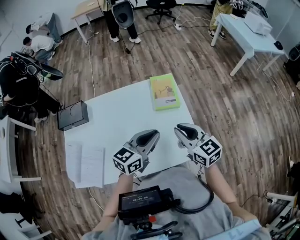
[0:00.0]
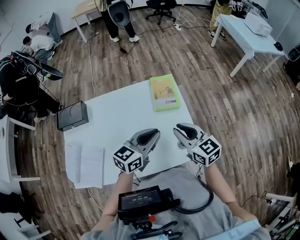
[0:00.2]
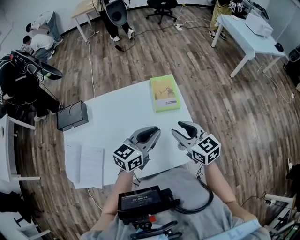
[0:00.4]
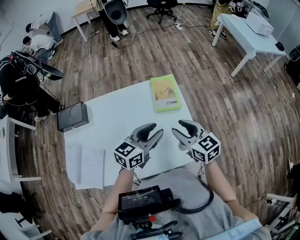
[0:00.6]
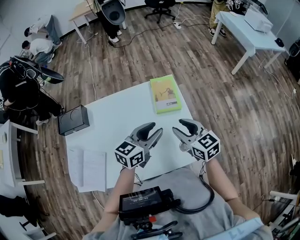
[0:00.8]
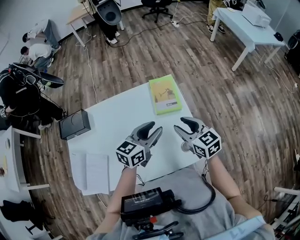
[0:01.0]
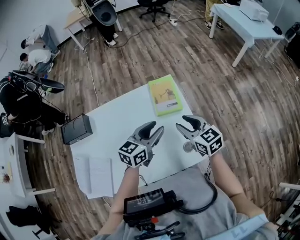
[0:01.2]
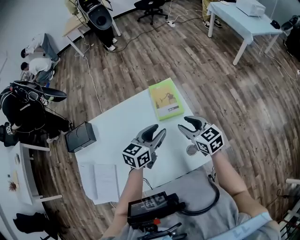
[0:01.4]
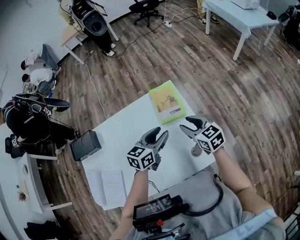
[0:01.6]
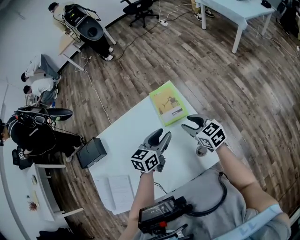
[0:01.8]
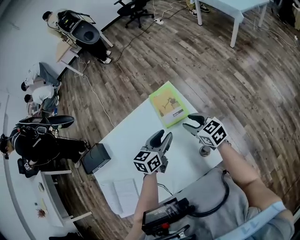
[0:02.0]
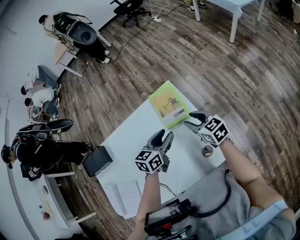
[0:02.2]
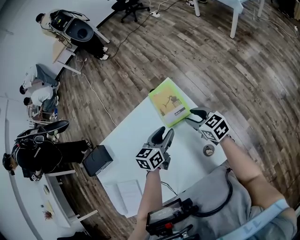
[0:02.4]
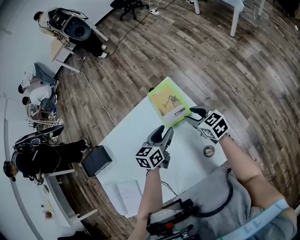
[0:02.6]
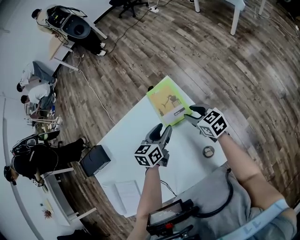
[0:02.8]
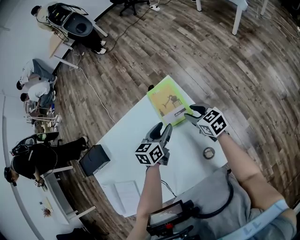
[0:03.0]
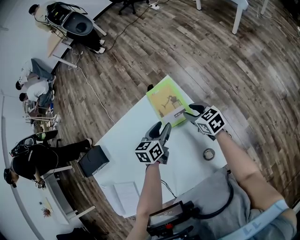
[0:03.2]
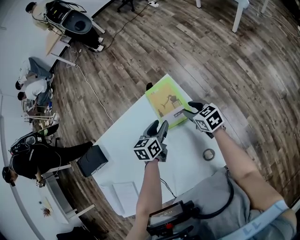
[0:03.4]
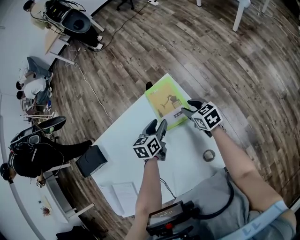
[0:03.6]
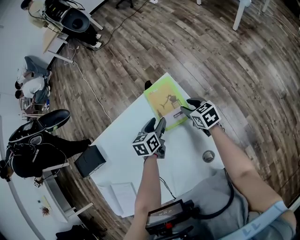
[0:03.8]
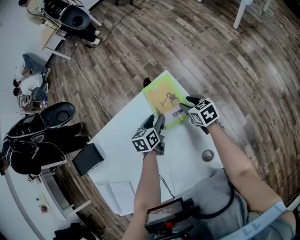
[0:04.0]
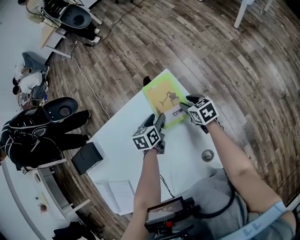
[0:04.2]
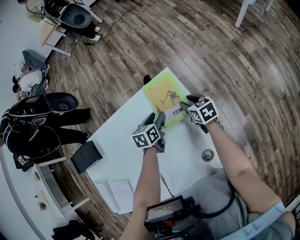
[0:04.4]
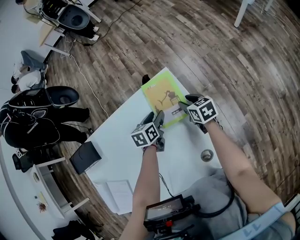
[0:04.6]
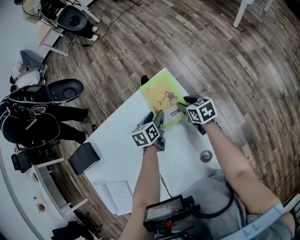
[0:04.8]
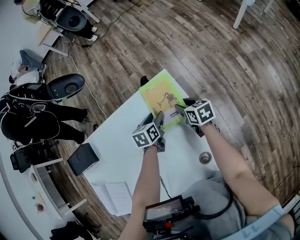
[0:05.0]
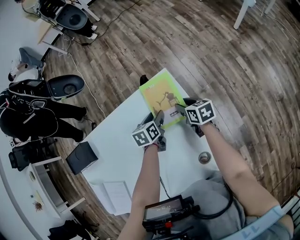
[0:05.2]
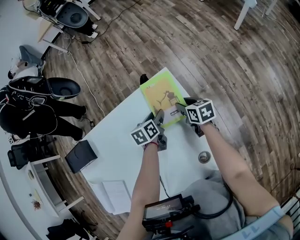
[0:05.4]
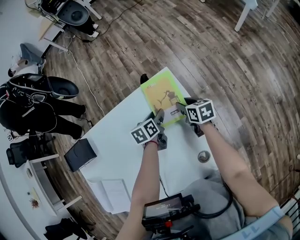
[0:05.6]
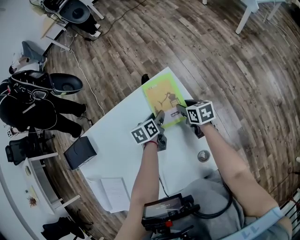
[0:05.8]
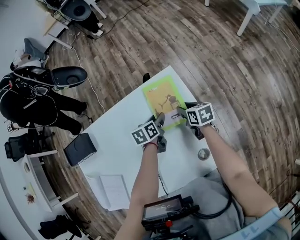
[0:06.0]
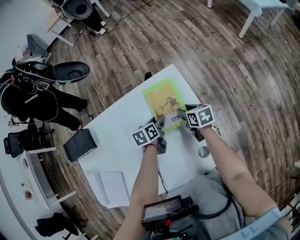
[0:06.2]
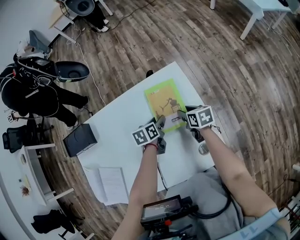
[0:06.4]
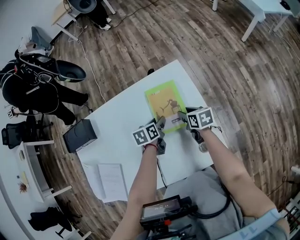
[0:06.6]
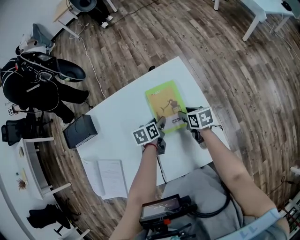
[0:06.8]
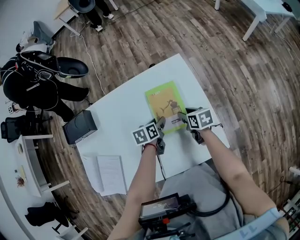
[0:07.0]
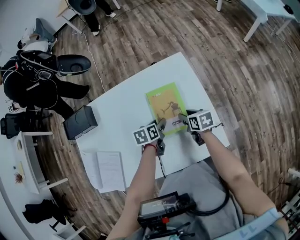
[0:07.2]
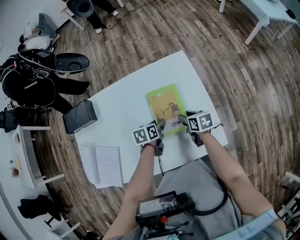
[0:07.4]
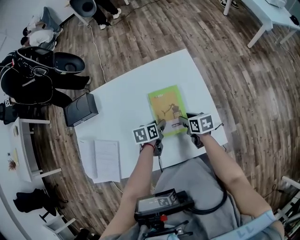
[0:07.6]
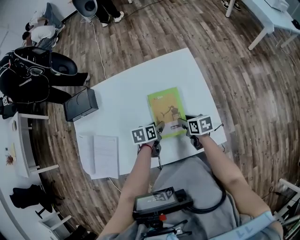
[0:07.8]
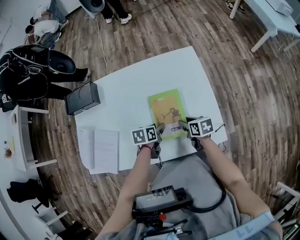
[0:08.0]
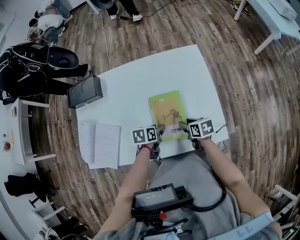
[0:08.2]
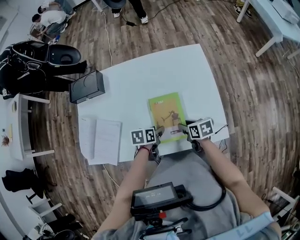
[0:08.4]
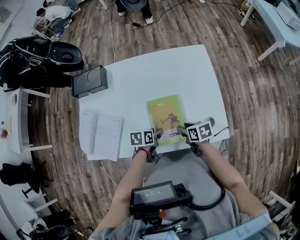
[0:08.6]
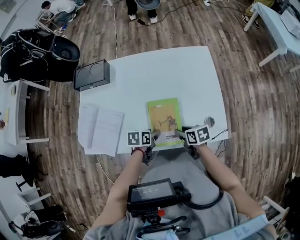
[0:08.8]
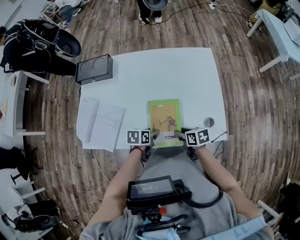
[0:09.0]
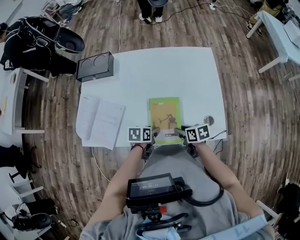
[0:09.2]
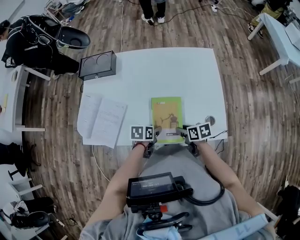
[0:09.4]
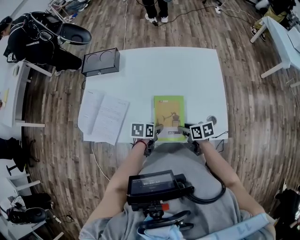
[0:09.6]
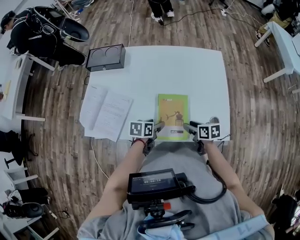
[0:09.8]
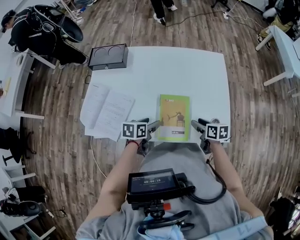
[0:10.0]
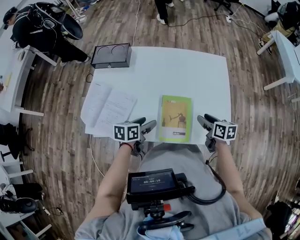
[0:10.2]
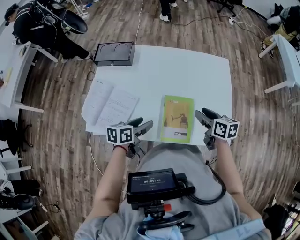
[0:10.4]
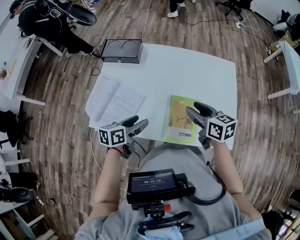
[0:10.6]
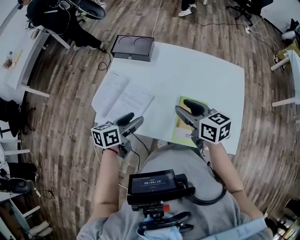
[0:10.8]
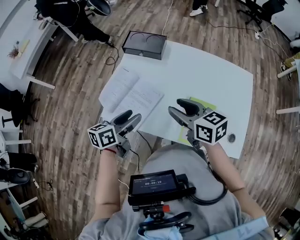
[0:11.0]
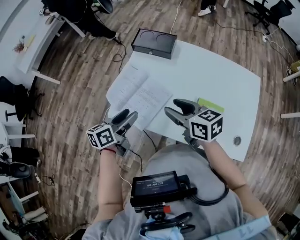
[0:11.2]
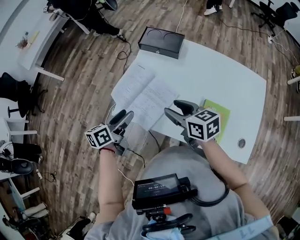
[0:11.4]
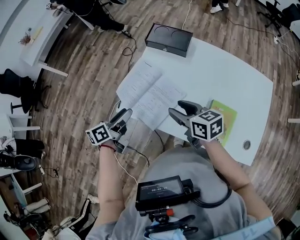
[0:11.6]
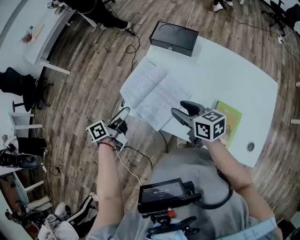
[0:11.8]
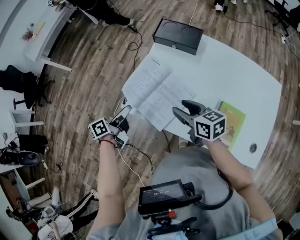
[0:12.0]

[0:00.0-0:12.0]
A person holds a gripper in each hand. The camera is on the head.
0:00.0 to 0:01.6: The two grippers go about 10 cm forward and downward. The left gripper opens its fingers. Meanwhile the right gripper opens.
0:01.6 to 0:03.0: Both grippers move forward and downward, some 10 cm.
0:03.0 to 0:04.4: Both grippers travel together downward and forward, about 10 cm.
0:04.4 to 0:06.0: The grippers make only small movements.
0:06.0 to 0:07.6: Both grippers move backward and to the left, about 20 cm.
0:07.6 to 0:09.0: The two grippers go roughly 20 cm backward and to the left.
0:09.0 to 0:10.4: The left gripper goes some 15 cm upward and to the left, and rotates about 20 degrees. The right gripper heads upward and forward, covering some 15 cm.
0:10.4 to 0:12.0: The left gripper moves about 10 cm upward and comes back, and swivels approximately 50 degrees; the right gripper travels upward and back again, roughly 10 cm each way, and rotates roughly 30 degrees.

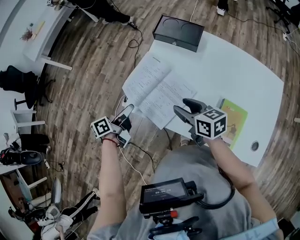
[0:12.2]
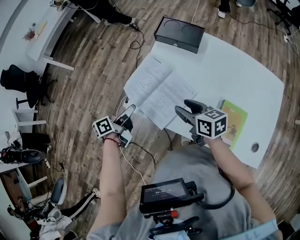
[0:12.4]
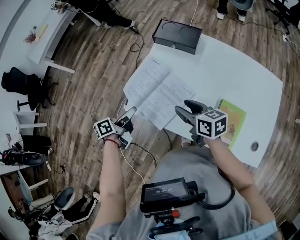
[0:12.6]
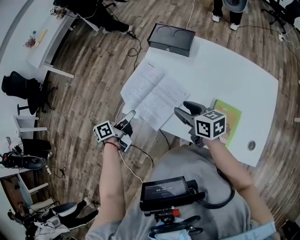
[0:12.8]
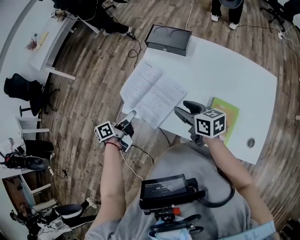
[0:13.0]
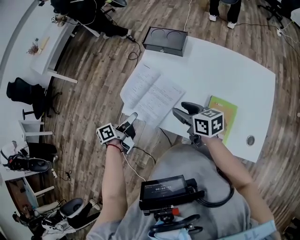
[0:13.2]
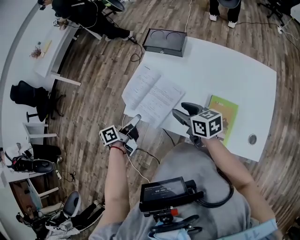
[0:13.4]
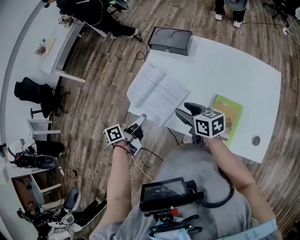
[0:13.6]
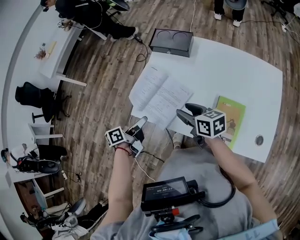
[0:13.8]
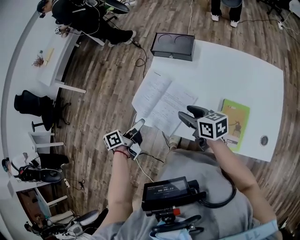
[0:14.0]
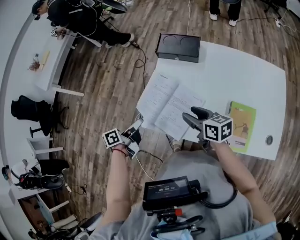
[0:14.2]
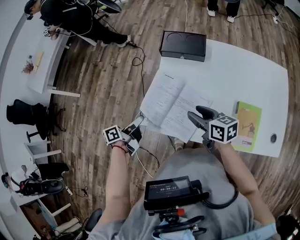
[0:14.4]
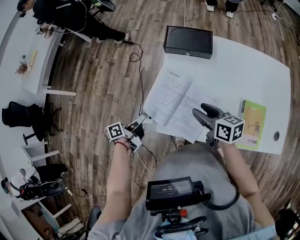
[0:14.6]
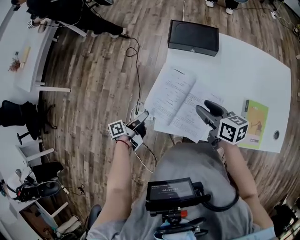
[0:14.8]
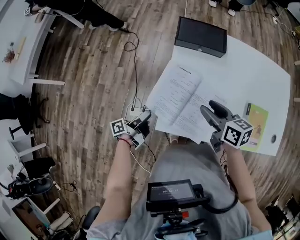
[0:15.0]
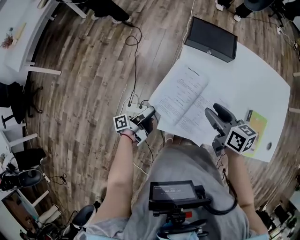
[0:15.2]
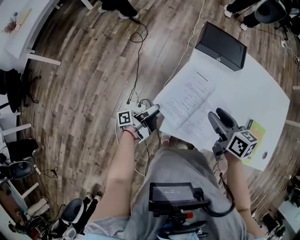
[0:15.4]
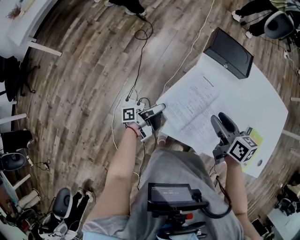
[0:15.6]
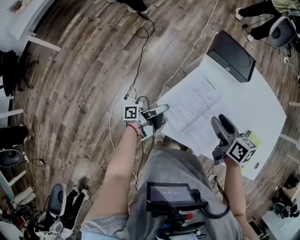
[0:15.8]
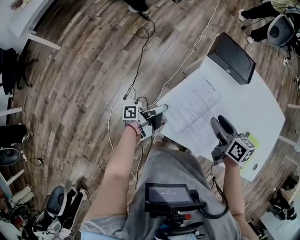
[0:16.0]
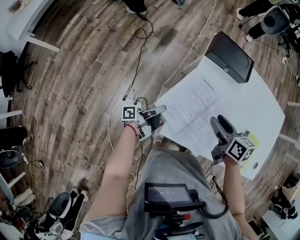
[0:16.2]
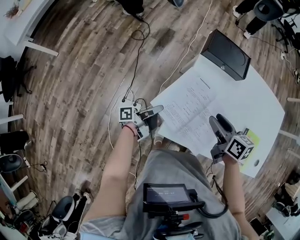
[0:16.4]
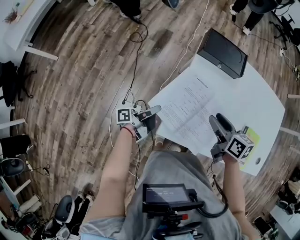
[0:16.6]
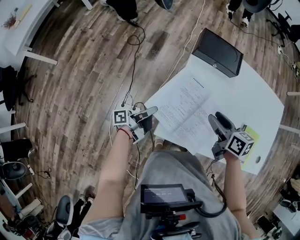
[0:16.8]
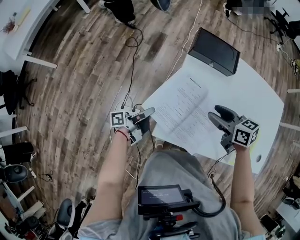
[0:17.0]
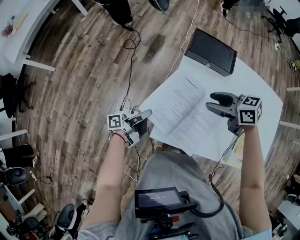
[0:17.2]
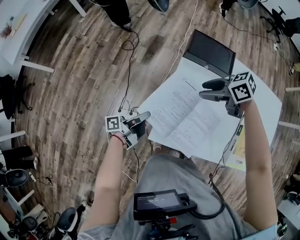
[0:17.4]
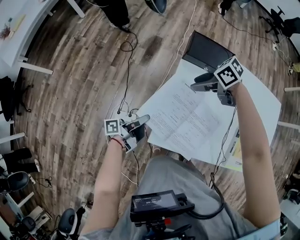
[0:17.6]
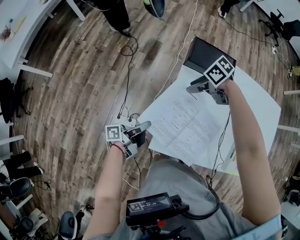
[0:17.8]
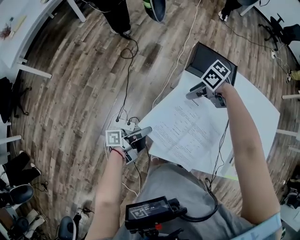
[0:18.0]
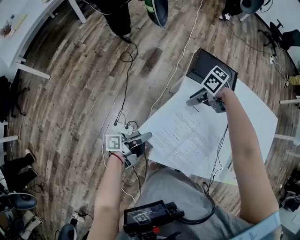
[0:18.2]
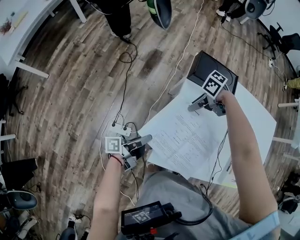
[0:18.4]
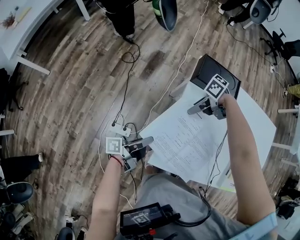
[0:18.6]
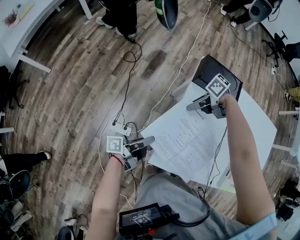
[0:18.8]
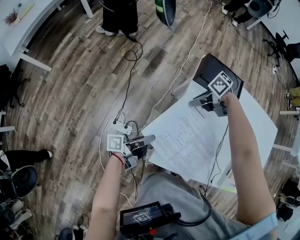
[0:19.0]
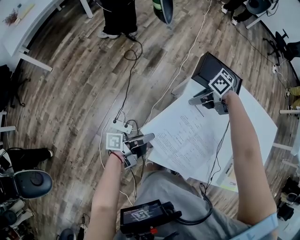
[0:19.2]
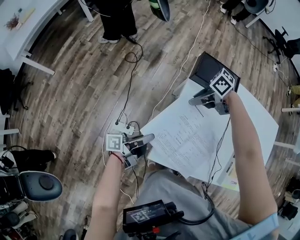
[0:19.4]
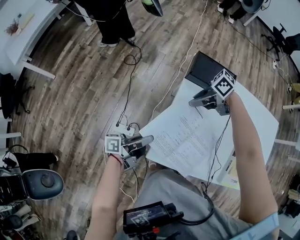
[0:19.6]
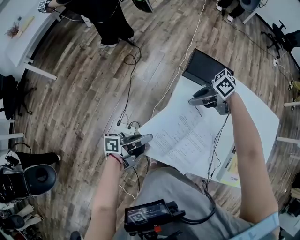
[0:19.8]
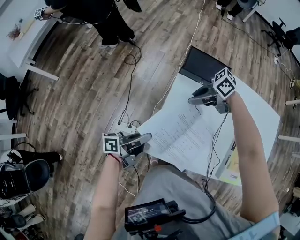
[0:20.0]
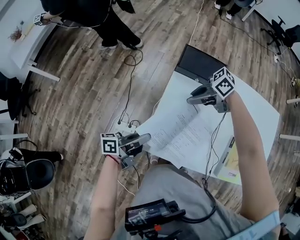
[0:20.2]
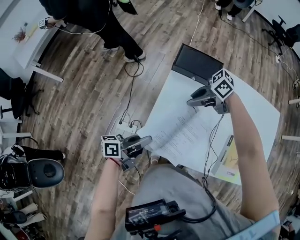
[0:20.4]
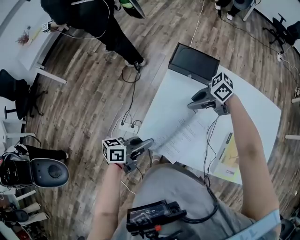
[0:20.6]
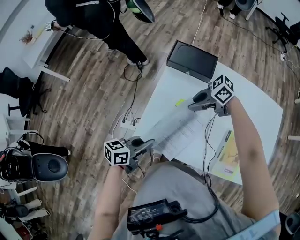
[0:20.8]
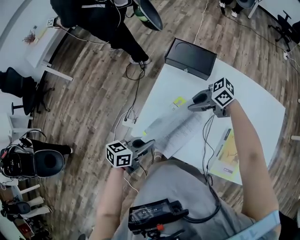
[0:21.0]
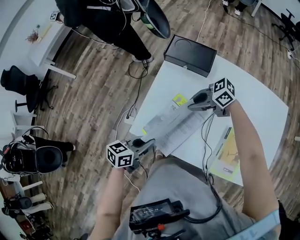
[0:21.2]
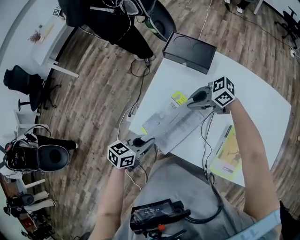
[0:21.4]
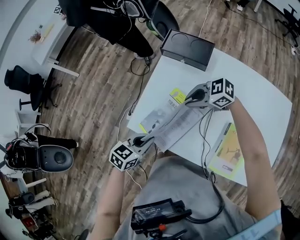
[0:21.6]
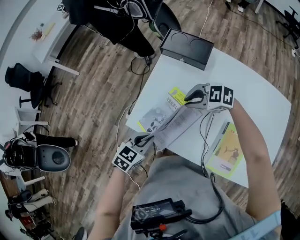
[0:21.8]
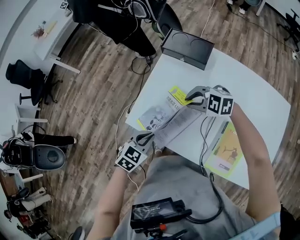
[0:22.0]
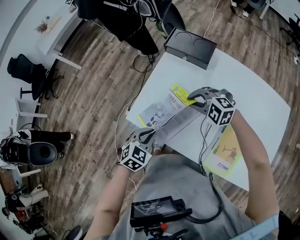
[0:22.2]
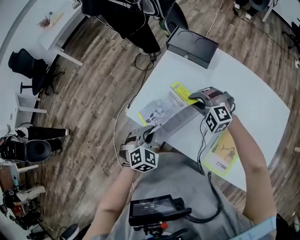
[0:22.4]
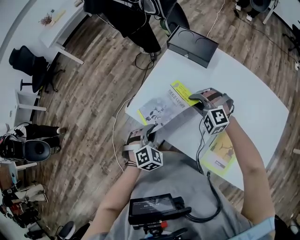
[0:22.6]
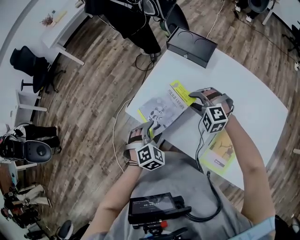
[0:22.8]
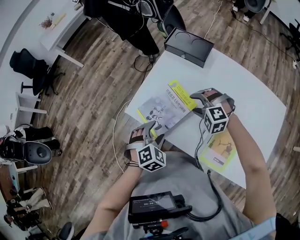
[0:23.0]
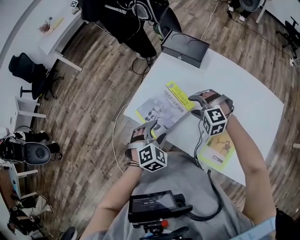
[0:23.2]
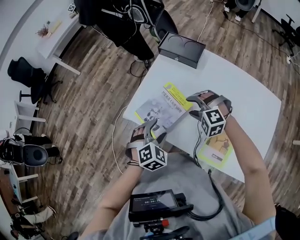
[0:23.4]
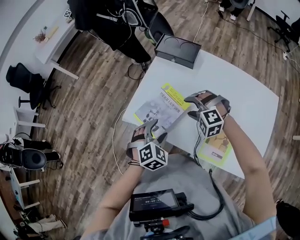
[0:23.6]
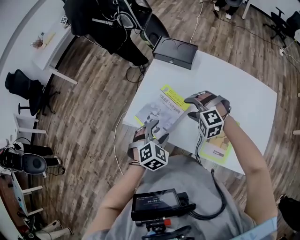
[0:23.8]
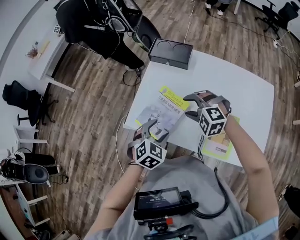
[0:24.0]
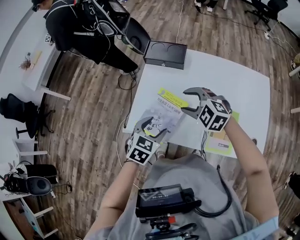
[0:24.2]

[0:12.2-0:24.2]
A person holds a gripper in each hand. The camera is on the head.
0:12.2 to 0:13.8: The left gripper travels to the right and backward by about 10 cm.
0:13.8 to 0:15.2: The right gripper travels to the left and forward by about 15 cm. The left gripper moves to the left, downward and forward, some 25 cm, and rotates some 30 degrees.
0:15.2 to 0:16.6: The left gripper closes up.
0:16.6 to 0:18.2: The right gripper shifts by about 20 cm, and turns by some 70 degrees.
0:18.2 to 0:19.8: The right gripper moves upward, roughly 10 cm, turns by about 20 degrees, and closes. Meanwhile the left gripper shifts by approximately 5 cm.
0:19.8 to 0:21.2: The right gripper ends up some 15 cm from where it was, and rotates some 20 degrees, while the left gripper changes place by about 15 cm, and angles its fingers downward, by about 30 degrees.
0:21.2 to 0:22.6: The left gripper changes place by some 5 cm, and rotates some 70 degrees; the right gripper changes place by about 5 cm, and twists approximately 70 degrees counterclockwise, seen from behind.
0:22.6 to 0:24.2: The grippers both shift upward by about 10 cm. The left gripper swivels roughly 30 degrees, and opens. Meanwhile the right gripper swivels about 40 degrees, and opens its fingers.
